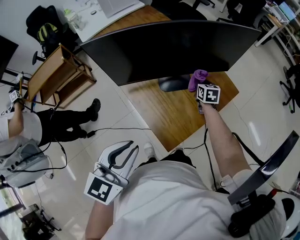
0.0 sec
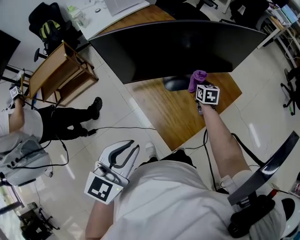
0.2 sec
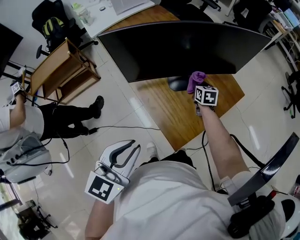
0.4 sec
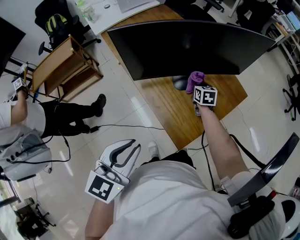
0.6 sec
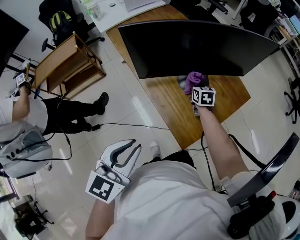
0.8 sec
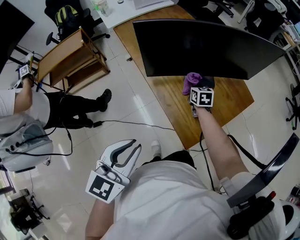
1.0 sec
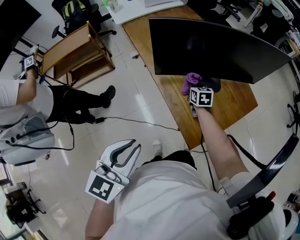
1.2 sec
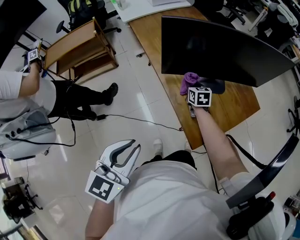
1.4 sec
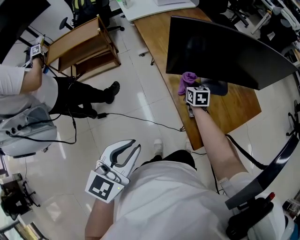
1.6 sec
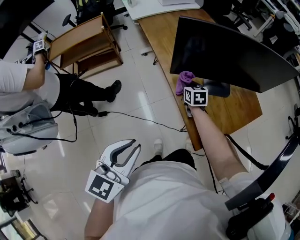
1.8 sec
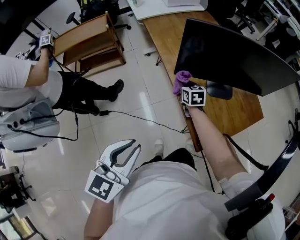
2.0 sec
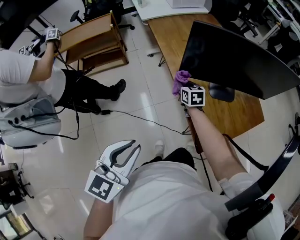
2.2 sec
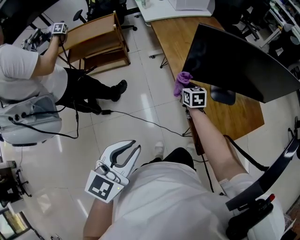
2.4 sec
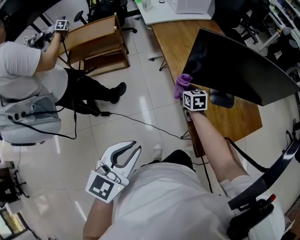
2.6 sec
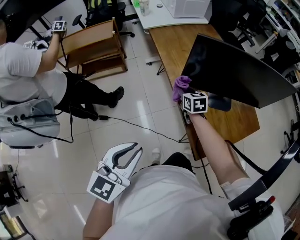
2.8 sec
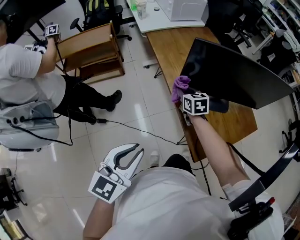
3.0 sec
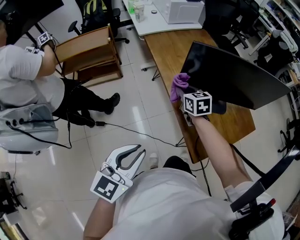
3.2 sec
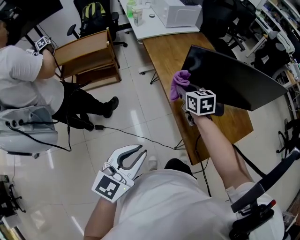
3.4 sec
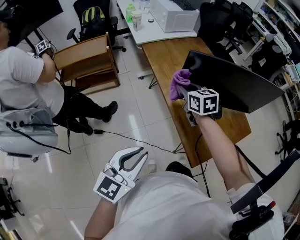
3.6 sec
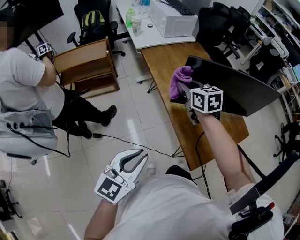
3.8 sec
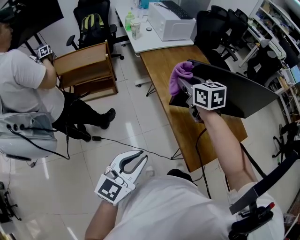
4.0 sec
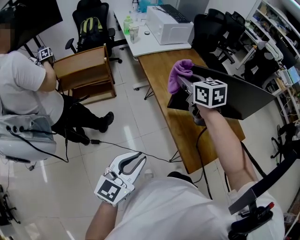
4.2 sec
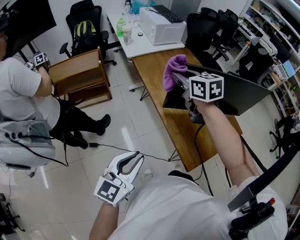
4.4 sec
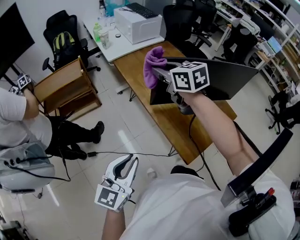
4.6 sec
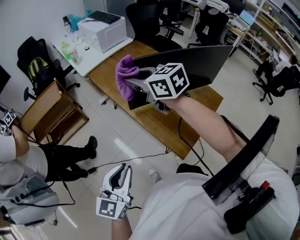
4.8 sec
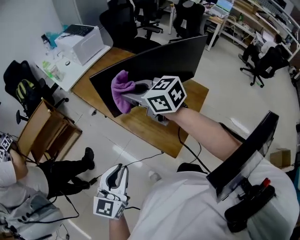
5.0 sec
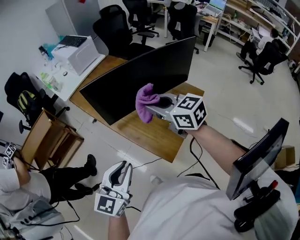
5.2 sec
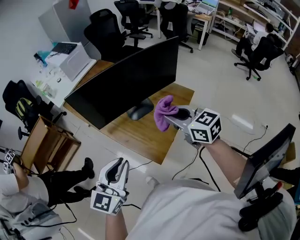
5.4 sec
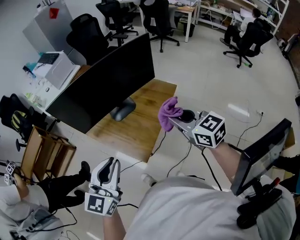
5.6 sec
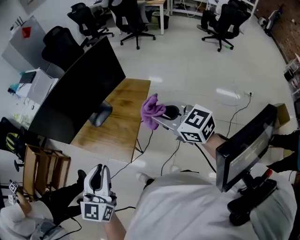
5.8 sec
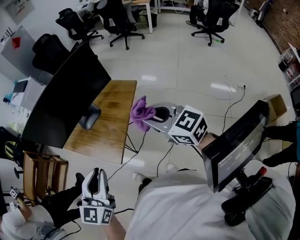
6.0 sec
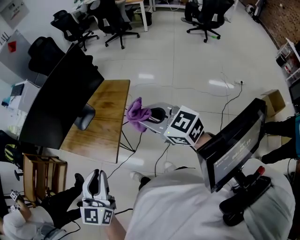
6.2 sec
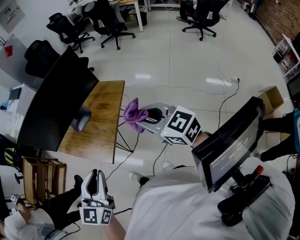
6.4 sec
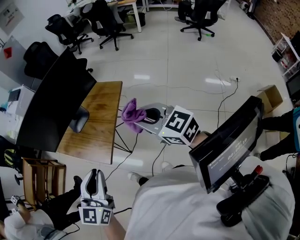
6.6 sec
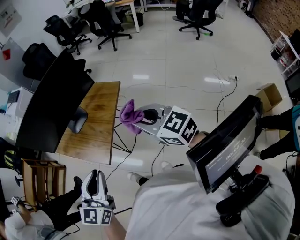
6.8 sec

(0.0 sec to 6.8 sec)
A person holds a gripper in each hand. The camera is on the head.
0.0 sec - 1.4 sec: The left gripper shifts about 15 cm to the left and backward. The right gripper travels to the left by some 25 cm.
1.4 sec - 2.8 sec: The left gripper travels to the left by about 5 cm. Meanwhile the right gripper travels to the left and upward by roughly 15 cm.
2.8 sec - 4.0 sec: The right gripper travels upward by some 25 cm.
4.0 sec - 5.4 sec: The right gripper moves to the right and backward, approximately 35 cm. The left gripper heads to the right, covering roughly 15 cm, and changes its angle by approximately 20 degrees.
5.4 sec - 6.8 sec: The grippers both shift to the right and backward by roughly 25 cm.

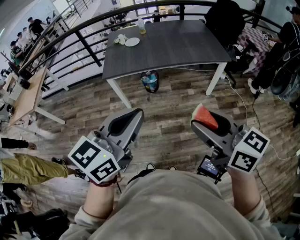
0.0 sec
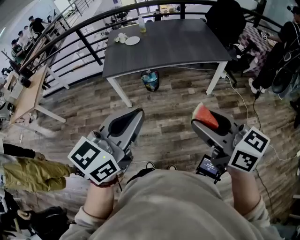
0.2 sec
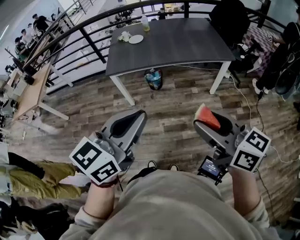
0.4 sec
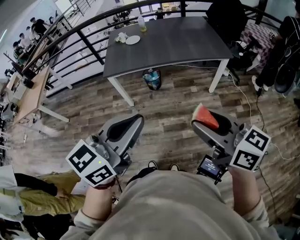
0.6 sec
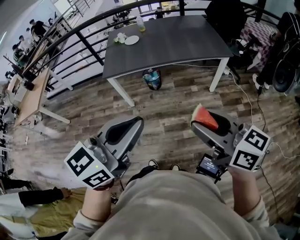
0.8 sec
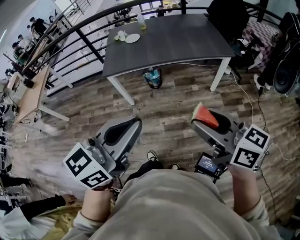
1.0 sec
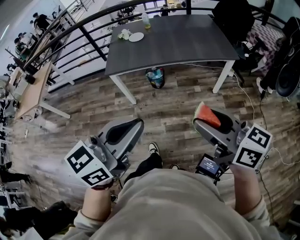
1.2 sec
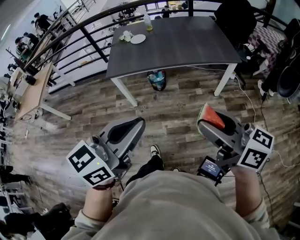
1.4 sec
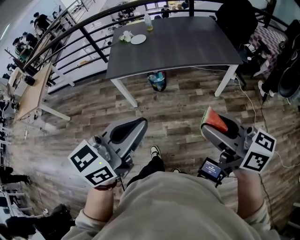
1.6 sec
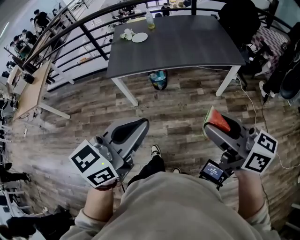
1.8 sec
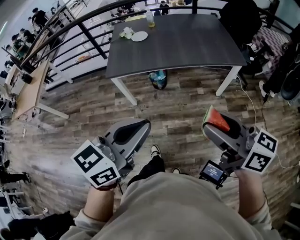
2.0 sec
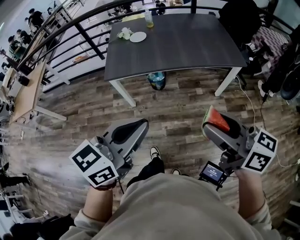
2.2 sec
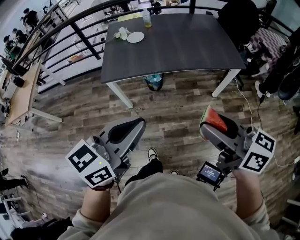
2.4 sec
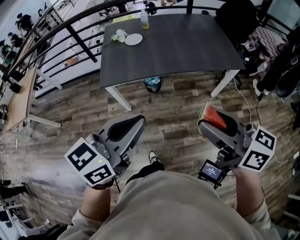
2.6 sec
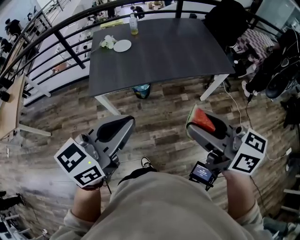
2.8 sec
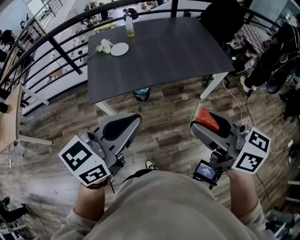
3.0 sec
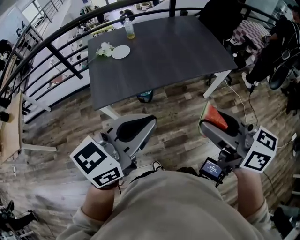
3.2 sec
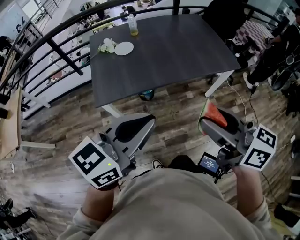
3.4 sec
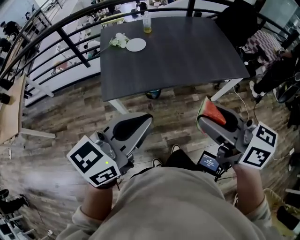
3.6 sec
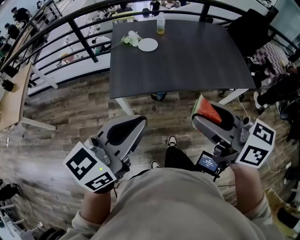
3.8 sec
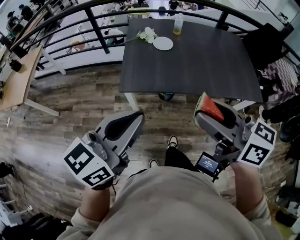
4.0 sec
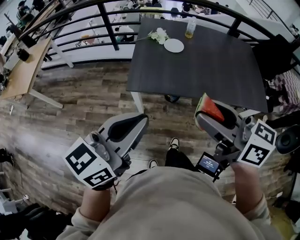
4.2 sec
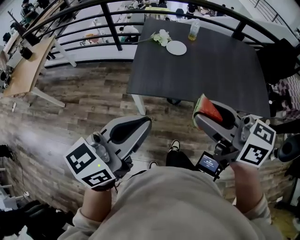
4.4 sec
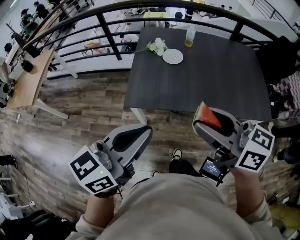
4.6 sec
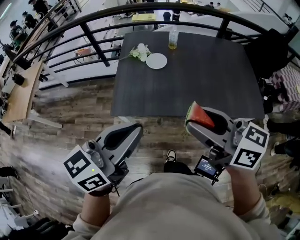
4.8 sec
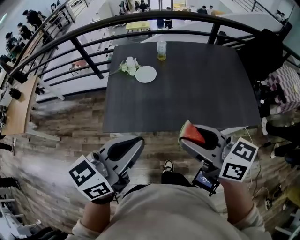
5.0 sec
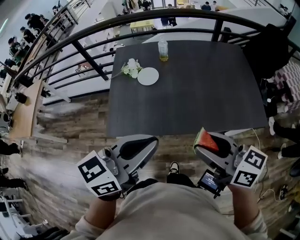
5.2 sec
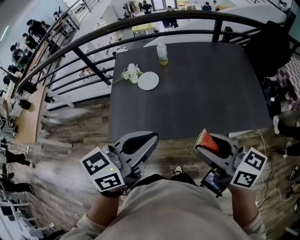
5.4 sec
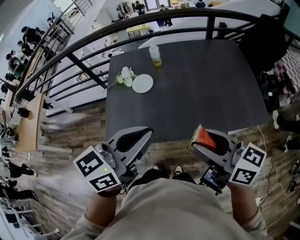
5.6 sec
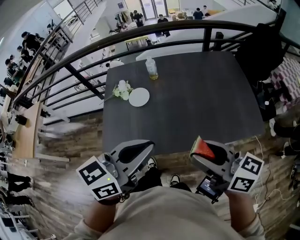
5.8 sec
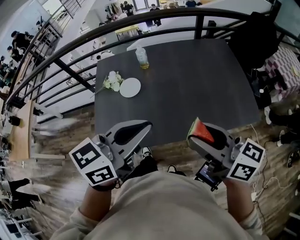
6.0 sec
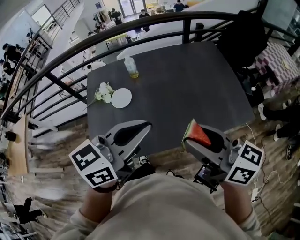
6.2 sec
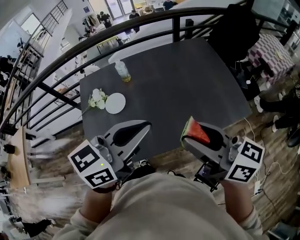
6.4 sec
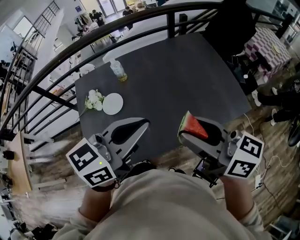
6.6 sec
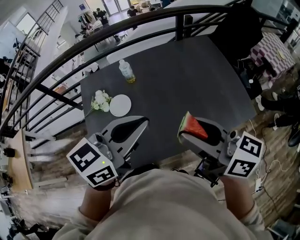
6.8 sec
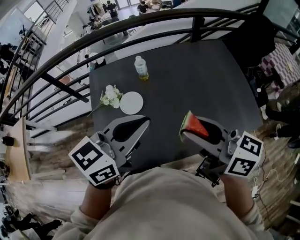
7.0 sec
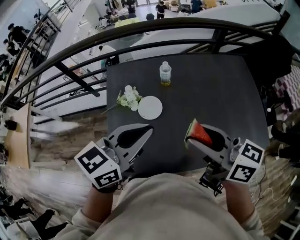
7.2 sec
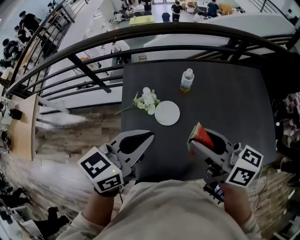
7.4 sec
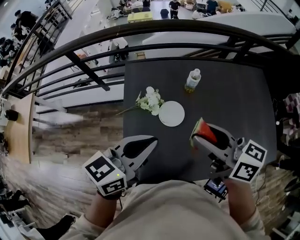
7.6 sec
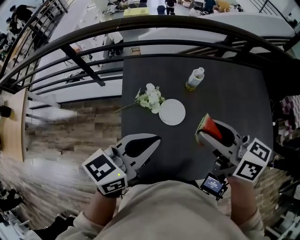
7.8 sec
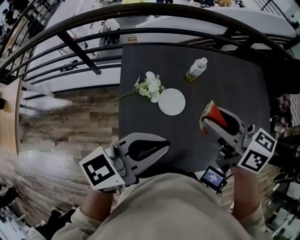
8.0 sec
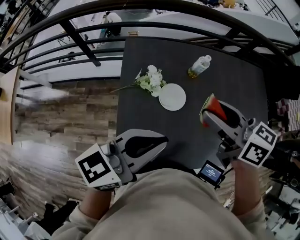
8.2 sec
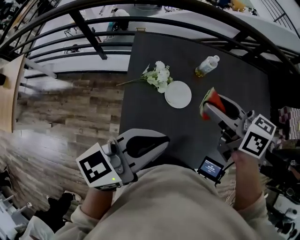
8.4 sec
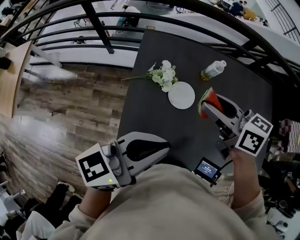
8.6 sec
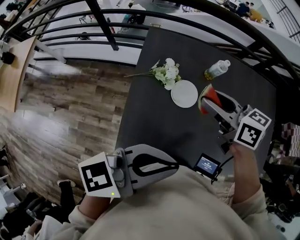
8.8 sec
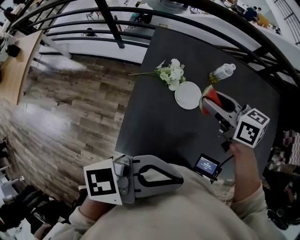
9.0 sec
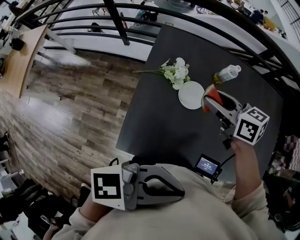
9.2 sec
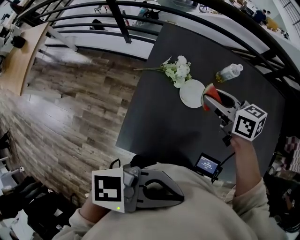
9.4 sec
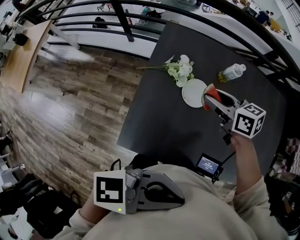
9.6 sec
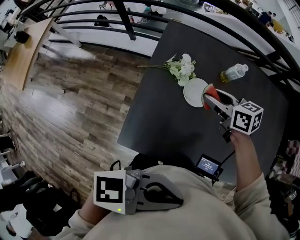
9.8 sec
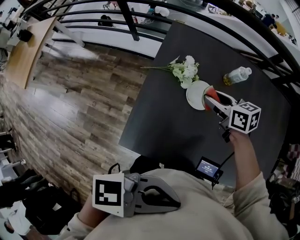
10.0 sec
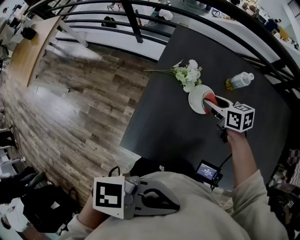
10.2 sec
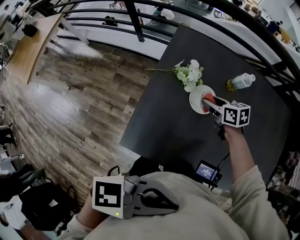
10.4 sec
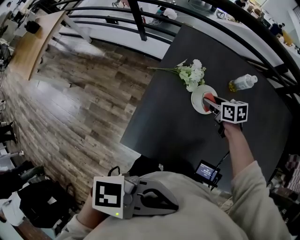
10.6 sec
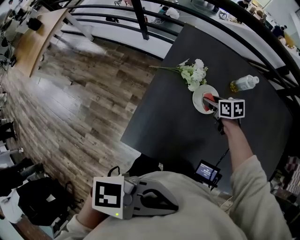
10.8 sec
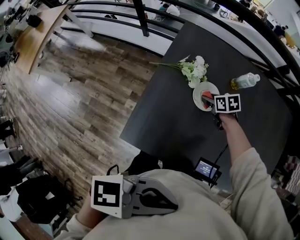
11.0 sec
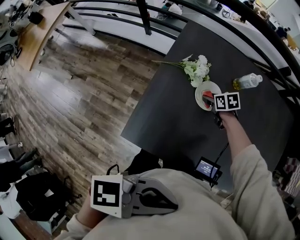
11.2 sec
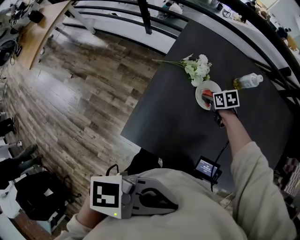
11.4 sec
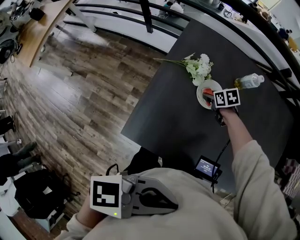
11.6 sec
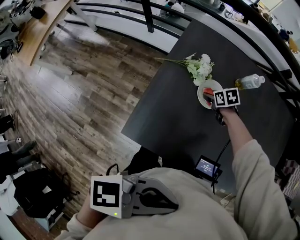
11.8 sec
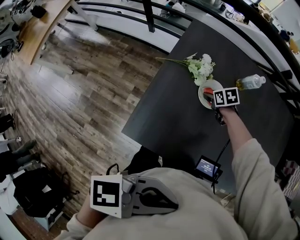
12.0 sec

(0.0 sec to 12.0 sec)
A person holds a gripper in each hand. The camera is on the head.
0.0 sec - 1.6 sec: The right gripper is displaced forward by roughly 5 cm.
1.6 sec - 3.0 sec: Both grippers travel together forward and to the left, roughly 20 cm.
3.0 sec - 4.4 sec: The left gripper ends up approximately 15 cm from where it was, and turns by some 20 degrees; the right gripper shifts by roughly 25 cm, and swivels some 20 degrees.
4.4 sec - 6.0 sec: The right gripper goes roughly 30 cm to the right and forward. The left gripper moves forward and to the right, approximately 35 cm.
6.0 sec - 7.6 sec: The grippers both shift to the left and forward by roughly 35 cm.
7.6 sec - 9.0 sec: The right gripper changes place by approximately 15 cm, and swivels some 20 degrees, while the left gripper changes place by approximately 15 cm, and turns by approximately 30 degrees.
9.0 sec - 10.4 sec: The right gripper is displaced downward by approximately 20 cm; the left gripper changes place by some 5 cm.
10.4 sec - 12.0 sec: The right gripper heads downward, covering approximately 10 cm, and changes its angle by roughly 20 degrees.

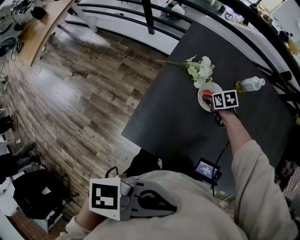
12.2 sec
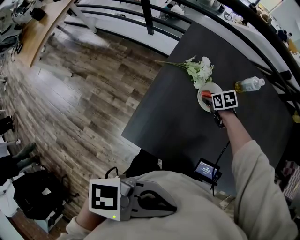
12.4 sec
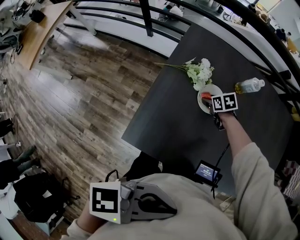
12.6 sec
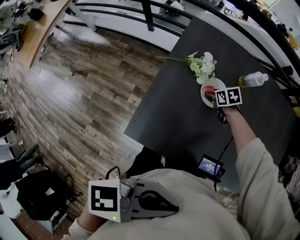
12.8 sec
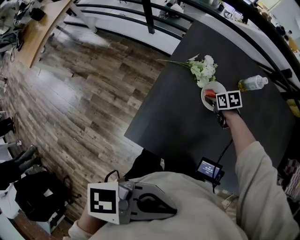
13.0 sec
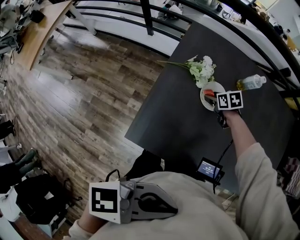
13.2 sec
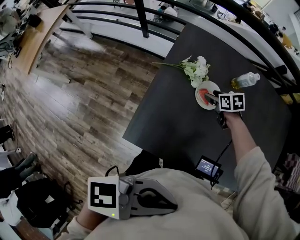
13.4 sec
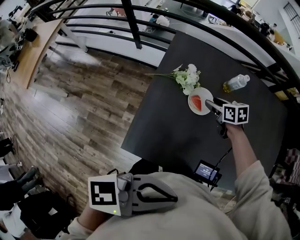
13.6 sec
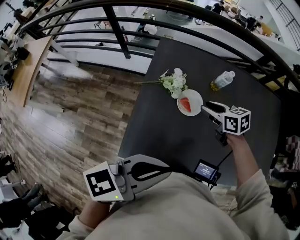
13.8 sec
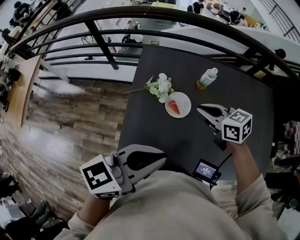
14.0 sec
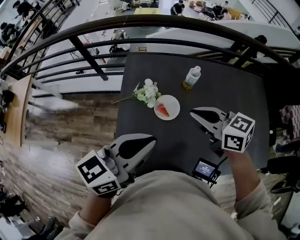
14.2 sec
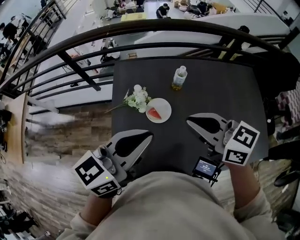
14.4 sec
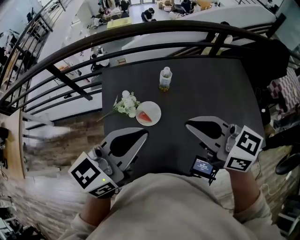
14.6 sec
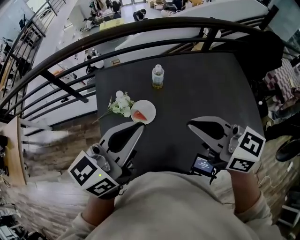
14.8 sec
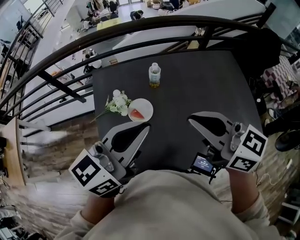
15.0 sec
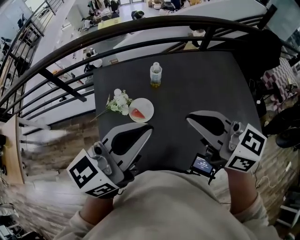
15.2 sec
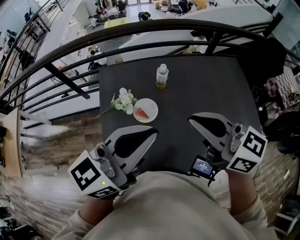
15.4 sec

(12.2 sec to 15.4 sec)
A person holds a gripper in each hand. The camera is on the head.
12.2 sec - 13.8 sec: The left gripper shifts by approximately 10 cm. The right gripper shifts roughly 20 cm upward, and rotates roughly 30 degrees.
13.8 sec - 15.4 sec: The left gripper travels forward, upward and to the right by roughly 15 cm. The right gripper moves upward and backward, some 30 cm, points its fingers about 30 degrees further upward, and closes up.

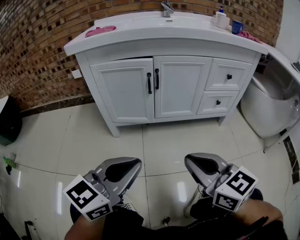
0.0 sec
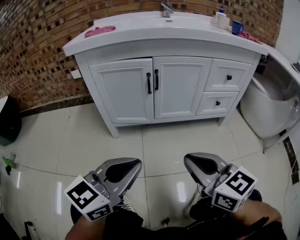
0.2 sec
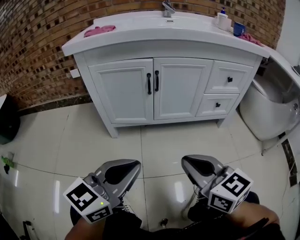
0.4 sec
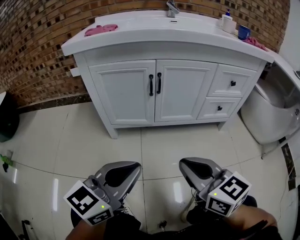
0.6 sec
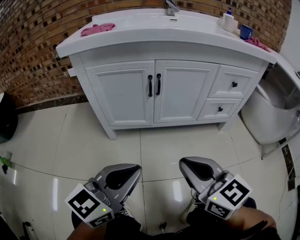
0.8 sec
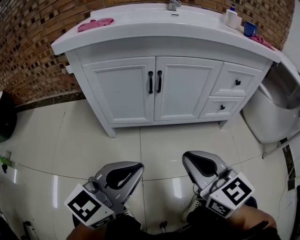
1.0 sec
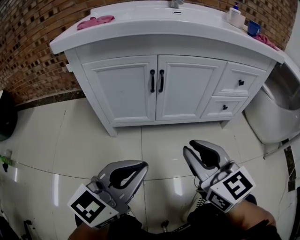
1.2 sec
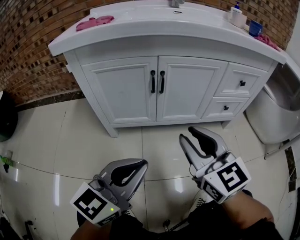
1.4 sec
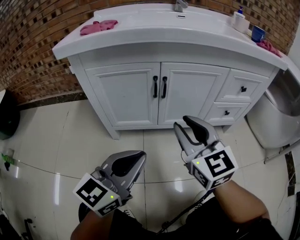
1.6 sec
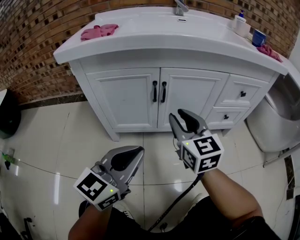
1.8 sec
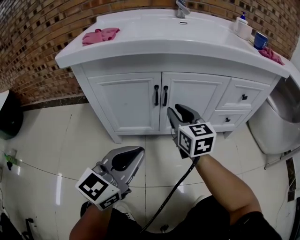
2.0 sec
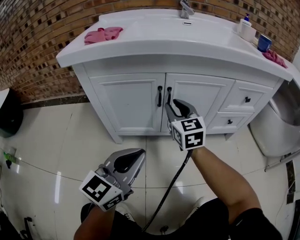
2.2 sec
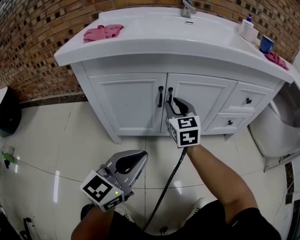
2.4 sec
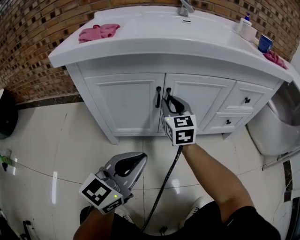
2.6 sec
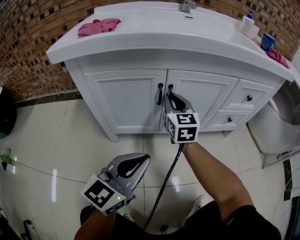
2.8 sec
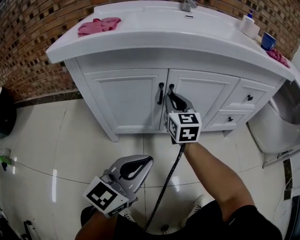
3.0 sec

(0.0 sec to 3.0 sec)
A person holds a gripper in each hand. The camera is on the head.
0.0 sec - 1.6 sec: The left gripper is displaced forward by roughly 10 cm. The right gripper heads forward, covering approximately 20 cm, swivels some 20 degrees, and opens.
1.6 sec - 3.0 sec: The right gripper travels forward by roughly 20 cm.
